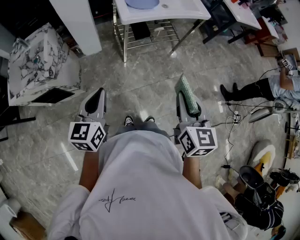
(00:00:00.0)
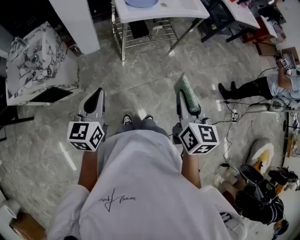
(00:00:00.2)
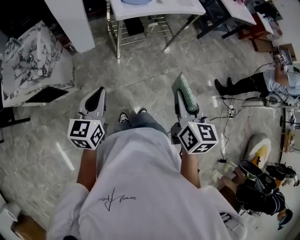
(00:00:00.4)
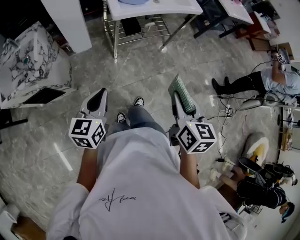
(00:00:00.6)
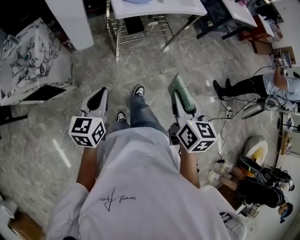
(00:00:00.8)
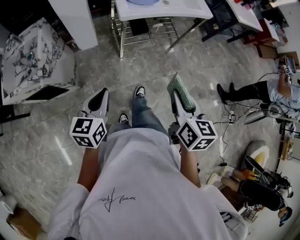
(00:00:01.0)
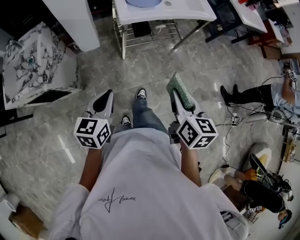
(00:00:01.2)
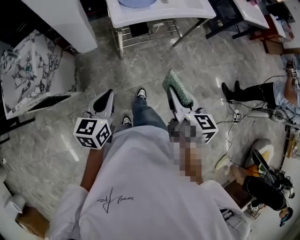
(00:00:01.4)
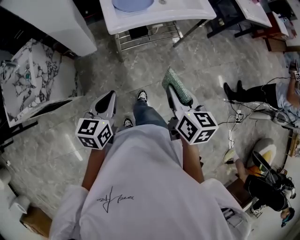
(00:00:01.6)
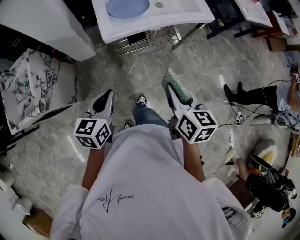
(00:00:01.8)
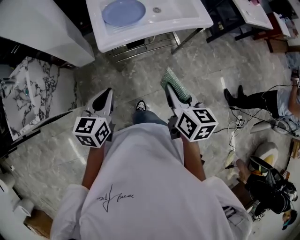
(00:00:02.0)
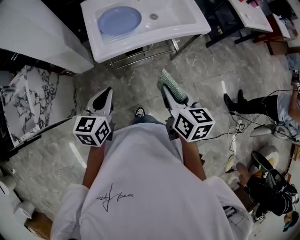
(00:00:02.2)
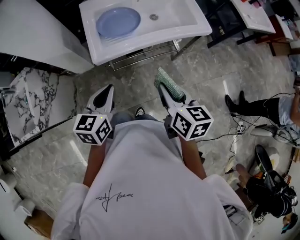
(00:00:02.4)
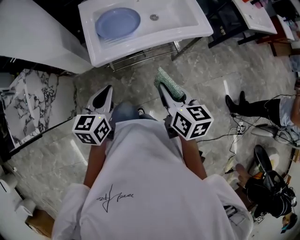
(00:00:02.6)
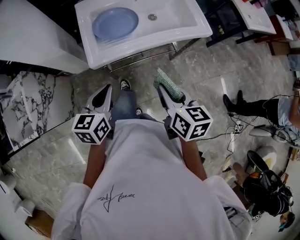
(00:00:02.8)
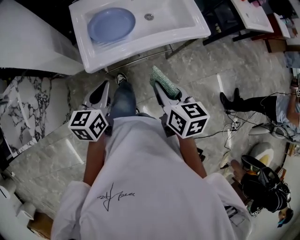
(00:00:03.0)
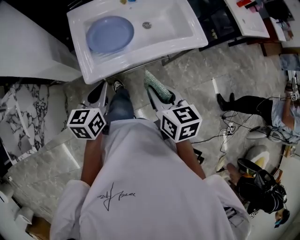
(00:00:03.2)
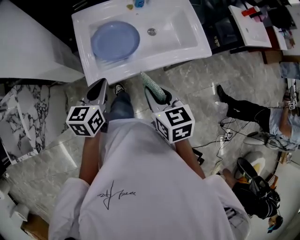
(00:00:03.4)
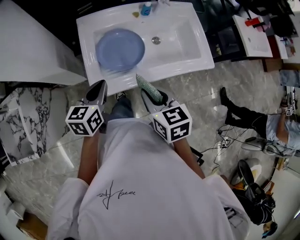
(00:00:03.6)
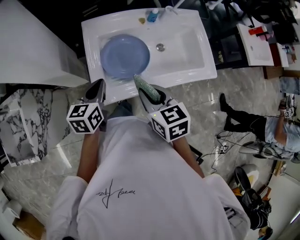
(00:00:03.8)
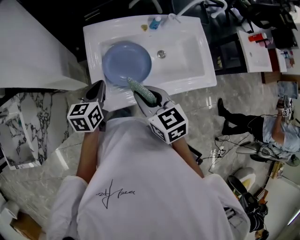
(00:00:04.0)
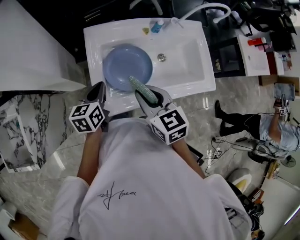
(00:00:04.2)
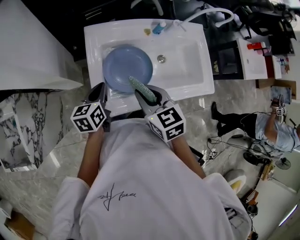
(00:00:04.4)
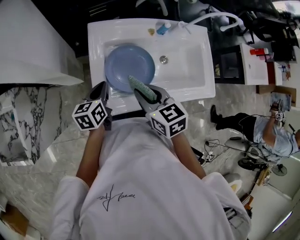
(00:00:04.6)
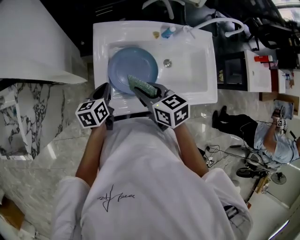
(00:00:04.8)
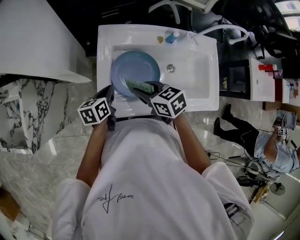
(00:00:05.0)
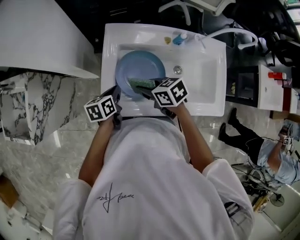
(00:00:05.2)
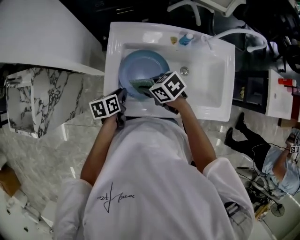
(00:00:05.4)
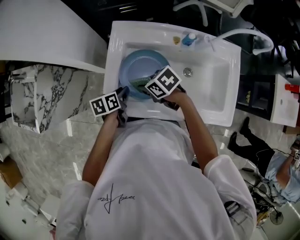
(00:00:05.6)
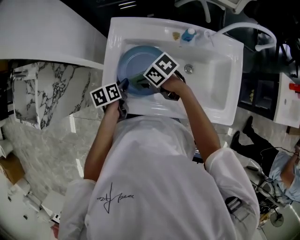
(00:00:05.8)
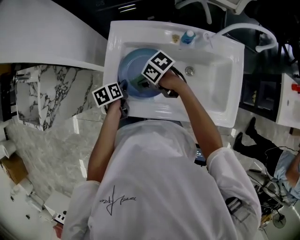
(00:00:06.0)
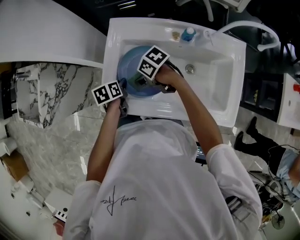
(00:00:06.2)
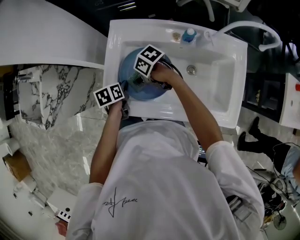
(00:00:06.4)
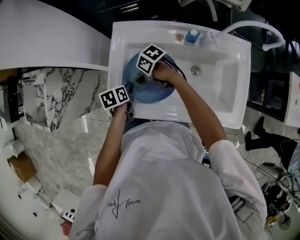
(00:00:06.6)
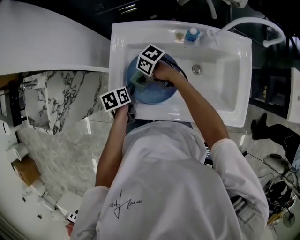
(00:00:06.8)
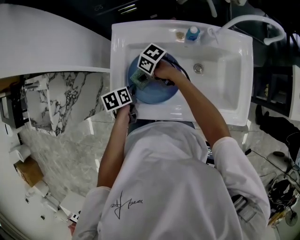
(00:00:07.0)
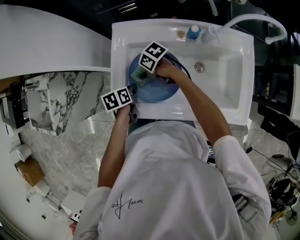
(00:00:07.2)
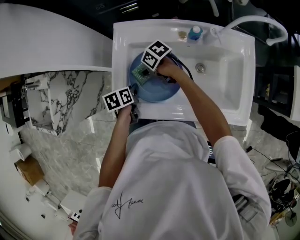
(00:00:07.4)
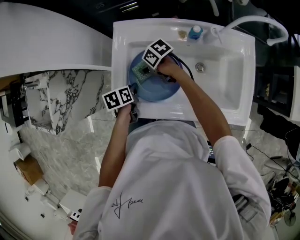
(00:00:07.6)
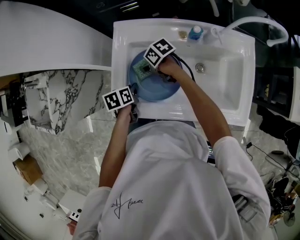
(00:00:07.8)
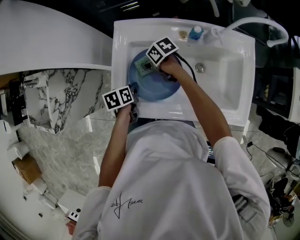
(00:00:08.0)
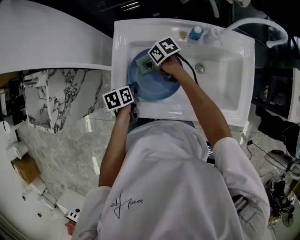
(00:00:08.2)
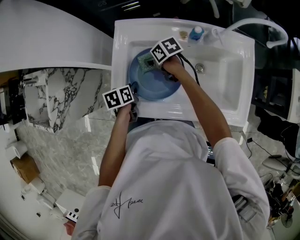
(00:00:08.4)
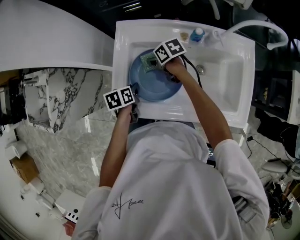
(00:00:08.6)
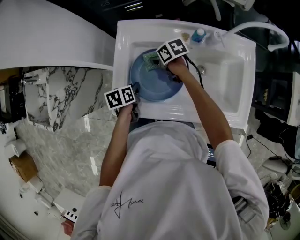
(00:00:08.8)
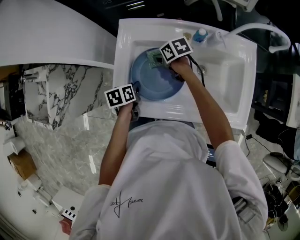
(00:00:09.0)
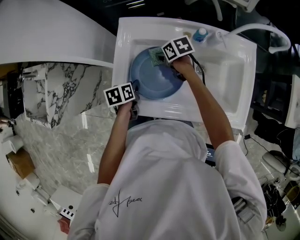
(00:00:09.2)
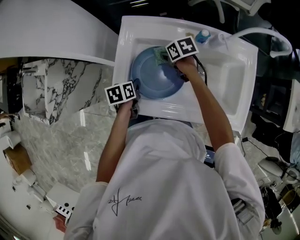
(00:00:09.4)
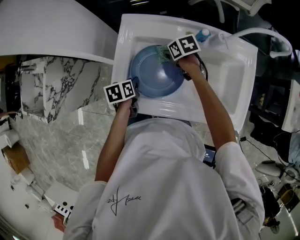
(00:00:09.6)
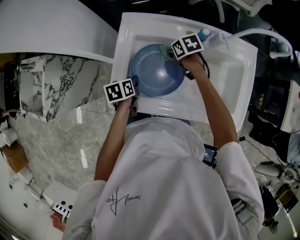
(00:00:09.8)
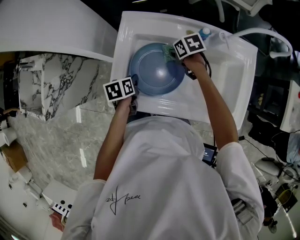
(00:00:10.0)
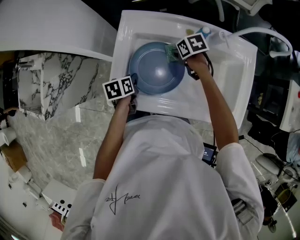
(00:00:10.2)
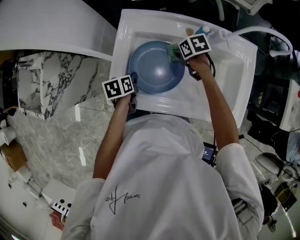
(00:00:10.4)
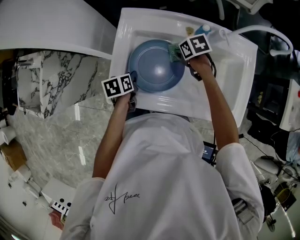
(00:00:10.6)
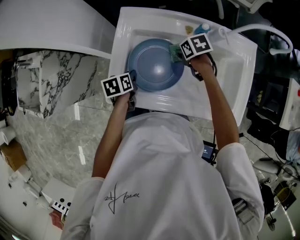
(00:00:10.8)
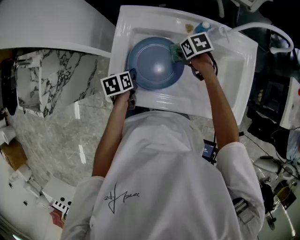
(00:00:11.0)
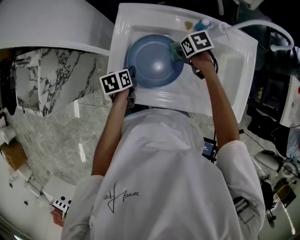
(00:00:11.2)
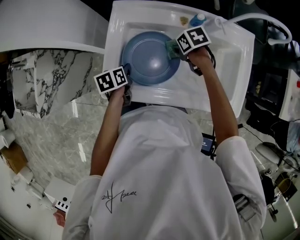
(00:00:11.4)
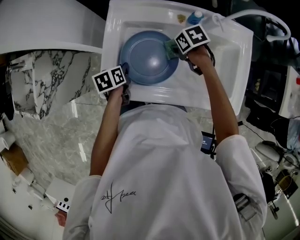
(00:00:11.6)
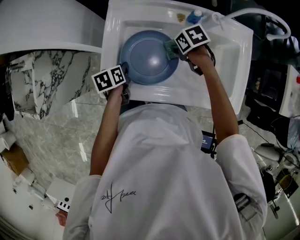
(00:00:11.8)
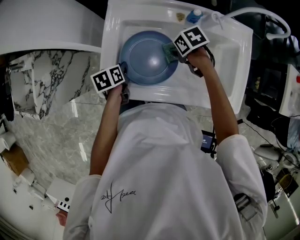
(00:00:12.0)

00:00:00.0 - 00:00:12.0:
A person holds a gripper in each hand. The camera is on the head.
00:00:00.0 - 00:00:01.6: The left gripper goes roughly 15 cm forward and to the right, while the right gripper heads forward, covering roughly 20 cm, and changes its angle by about 20 degrees.
00:00:01.6 - 00:00:03.0: Both grippers travel together forward, some 25 cm.
00:00:03.0 - 00:00:04.4: The right gripper goes approximately 30 cm forward and to the left, and turns by some 30 degrees, while the left gripper is displaced forward by approximately 25 cm.
00:00:04.4 - 00:00:06.0: The two grippers go approximately 15 cm downward. The left gripper swivels approximately 40 degrees, and opens its fingers. The right gripper turns by about 70 degrees.
00:00:06.0 - 00:00:07.6: The right gripper ends up about 10 cm from where it was.
00:00:07.6 - 00:00:09.0: The right gripper moves roughly 10 cm, and turns by roughly 20 degrees.
00:00:09.0 - 00:00:10.4: The right gripper shifts about 10 cm to the right.
00:00:10.4 - 00:00:12.0: The right gripper travels backward by roughly 5 cm.

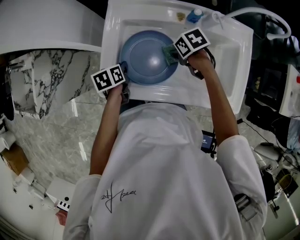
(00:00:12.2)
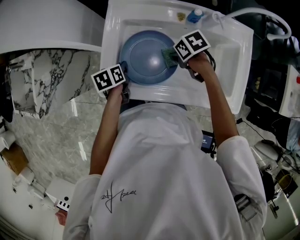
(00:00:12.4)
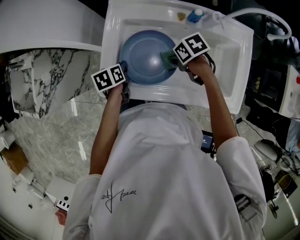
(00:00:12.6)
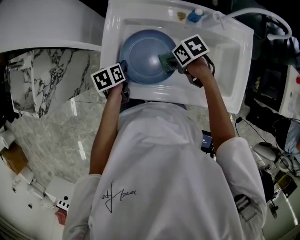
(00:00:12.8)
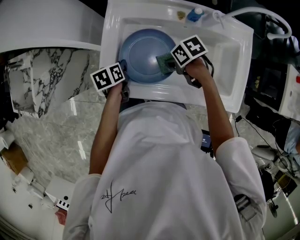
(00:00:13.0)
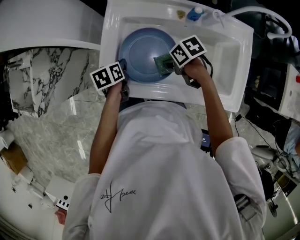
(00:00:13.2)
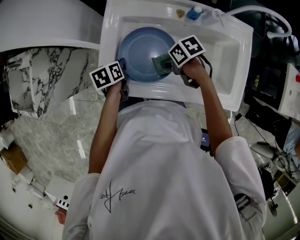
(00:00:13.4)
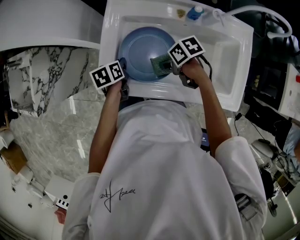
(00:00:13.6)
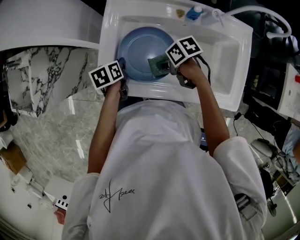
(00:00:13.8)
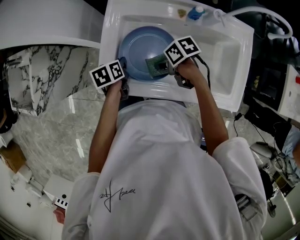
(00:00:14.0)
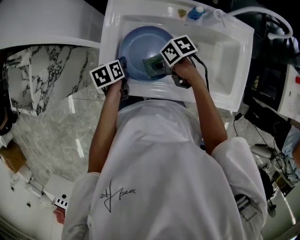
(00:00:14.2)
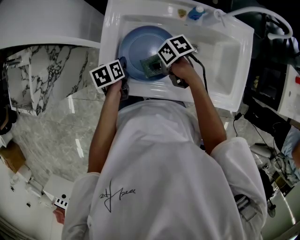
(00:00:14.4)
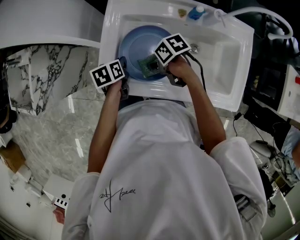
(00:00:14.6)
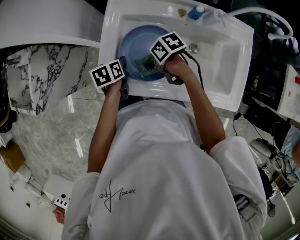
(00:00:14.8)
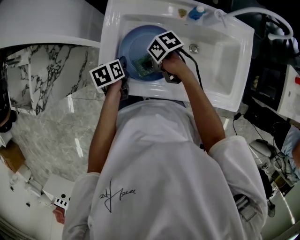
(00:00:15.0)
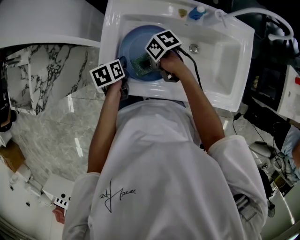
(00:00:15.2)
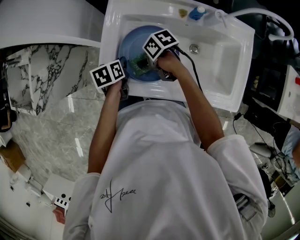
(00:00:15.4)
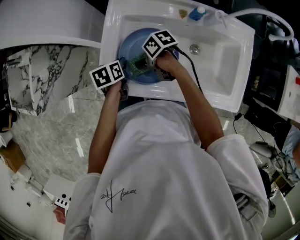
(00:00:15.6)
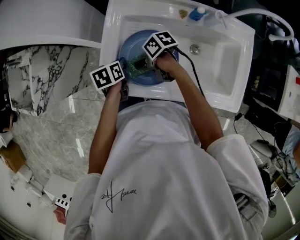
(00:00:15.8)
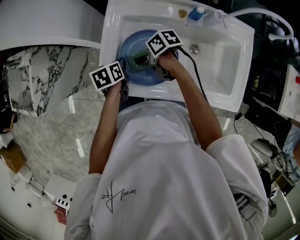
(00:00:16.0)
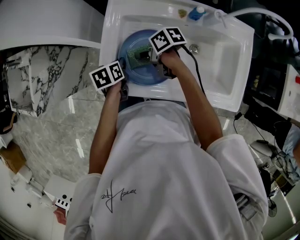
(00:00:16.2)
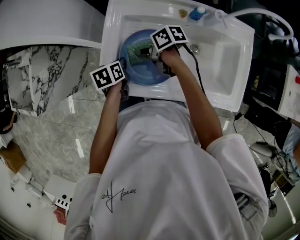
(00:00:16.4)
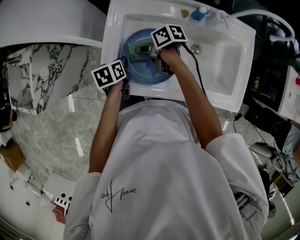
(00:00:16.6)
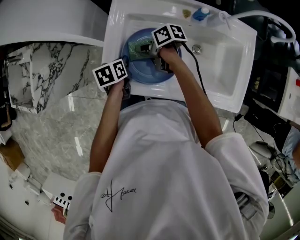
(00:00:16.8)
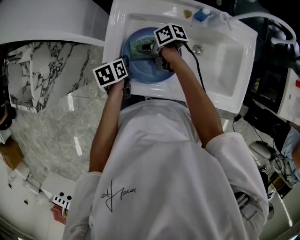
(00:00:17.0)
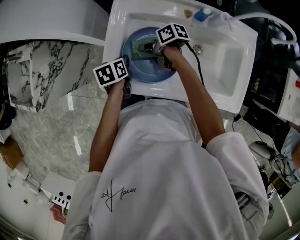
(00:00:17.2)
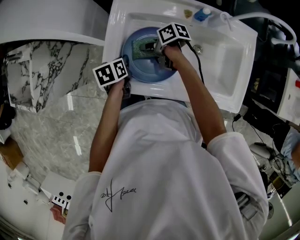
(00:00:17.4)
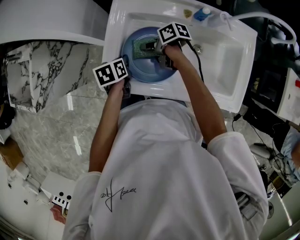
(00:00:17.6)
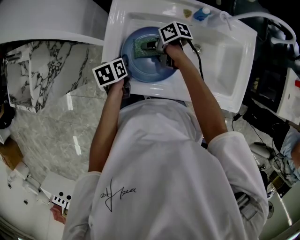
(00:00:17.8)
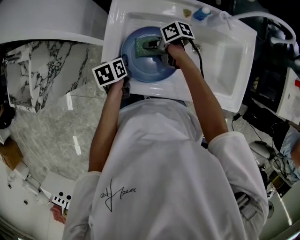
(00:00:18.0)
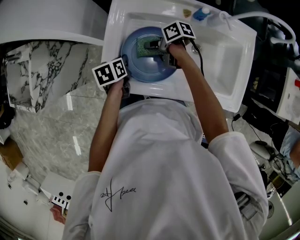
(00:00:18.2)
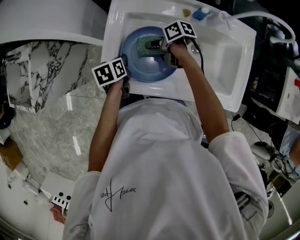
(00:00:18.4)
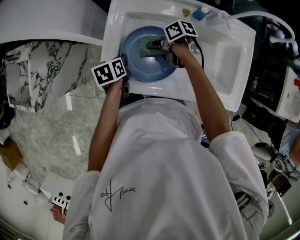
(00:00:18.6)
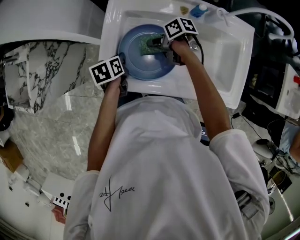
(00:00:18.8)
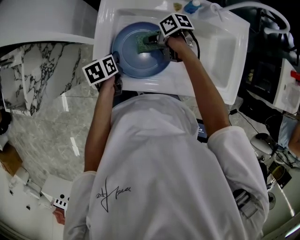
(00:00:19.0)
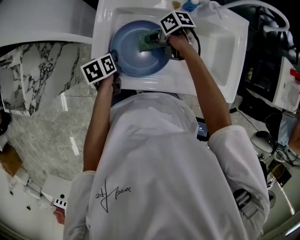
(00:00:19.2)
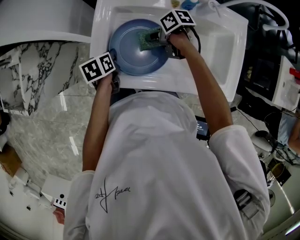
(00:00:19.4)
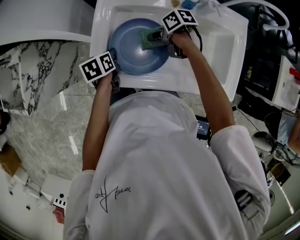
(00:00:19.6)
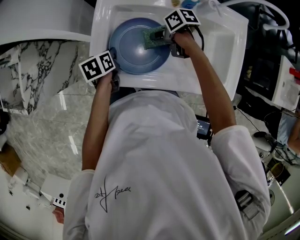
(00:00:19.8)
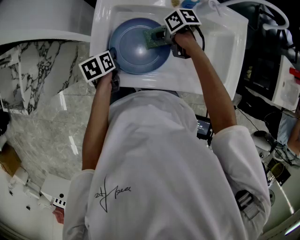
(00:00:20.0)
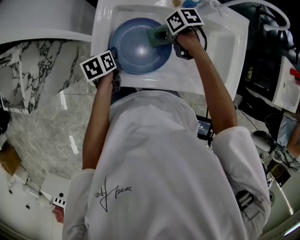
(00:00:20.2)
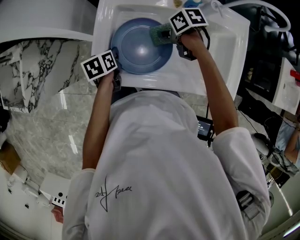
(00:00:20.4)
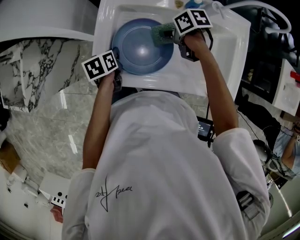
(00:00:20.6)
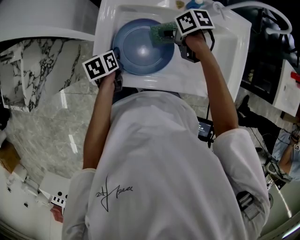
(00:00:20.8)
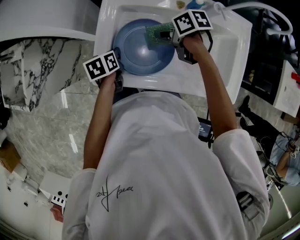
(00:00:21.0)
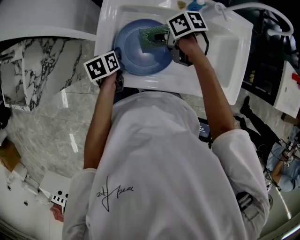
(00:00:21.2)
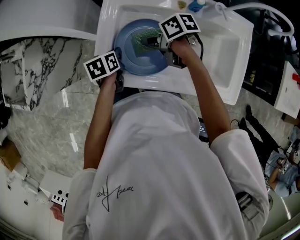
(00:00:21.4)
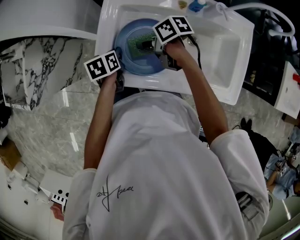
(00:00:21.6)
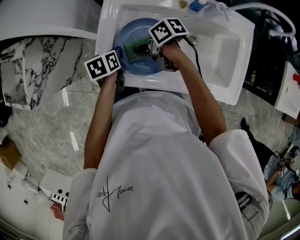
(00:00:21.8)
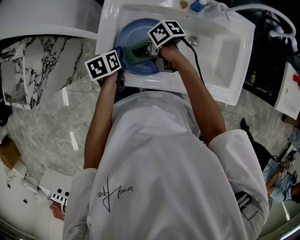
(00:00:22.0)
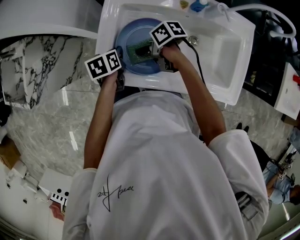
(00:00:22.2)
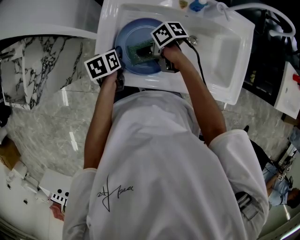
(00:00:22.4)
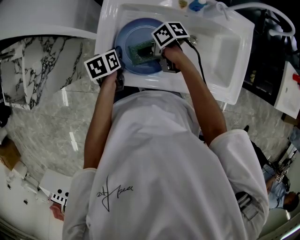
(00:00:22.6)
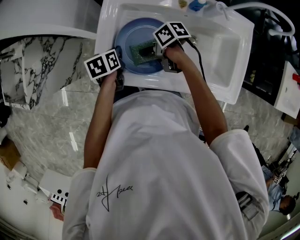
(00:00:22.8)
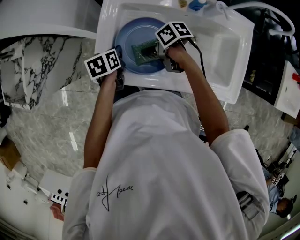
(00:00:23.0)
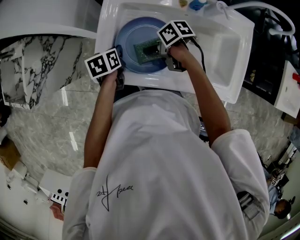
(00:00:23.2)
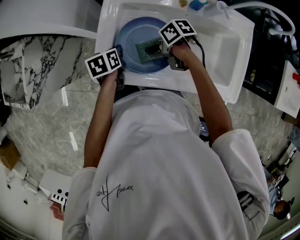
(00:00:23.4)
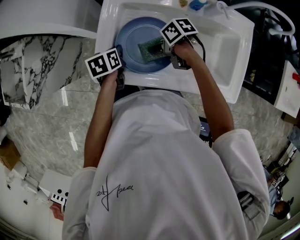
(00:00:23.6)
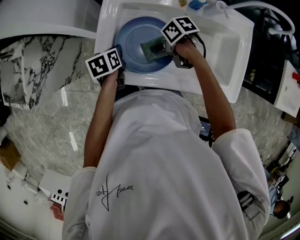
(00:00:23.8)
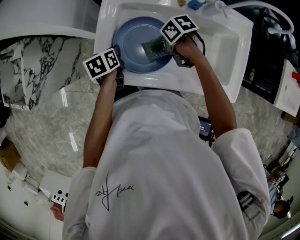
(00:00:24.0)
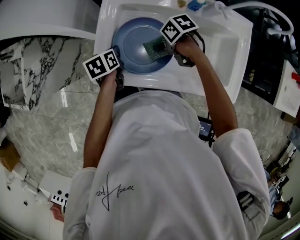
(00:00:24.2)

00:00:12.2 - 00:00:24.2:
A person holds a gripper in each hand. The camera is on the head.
00:00:12.2 - 00:00:13.8: The right gripper travels to the left by about 10 cm.
00:00:13.8 - 00:00:15.2: The right gripper moves about 10 cm.
00:00:15.2 - 00:00:16.6: The right gripper moves roughly 5 cm, and rotates approximately 20 degrees.
00:00:16.6 - 00:00:18.2: The grippers move only a little.
00:00:18.2 - 00:00:19.8: The right gripper goes about 5 cm to the right.
00:00:19.8 - 00:00:21.2: The right gripper moves upward, about 5 cm.
00:00:21.2 - 00:00:22.6: The right gripper travels to the left by about 10 cm.
00:00:22.6 - 00:00:24.2: The right gripper heads to the right, covering roughly 5 cm.
